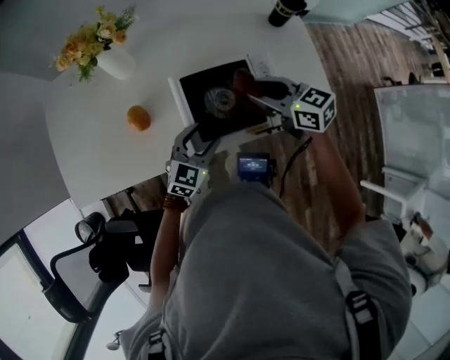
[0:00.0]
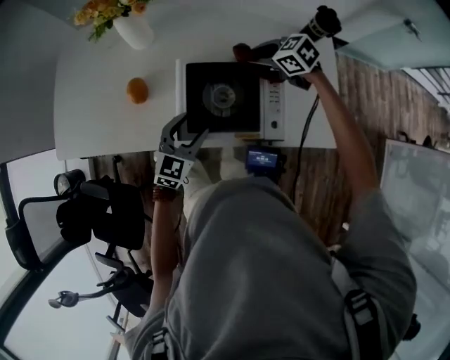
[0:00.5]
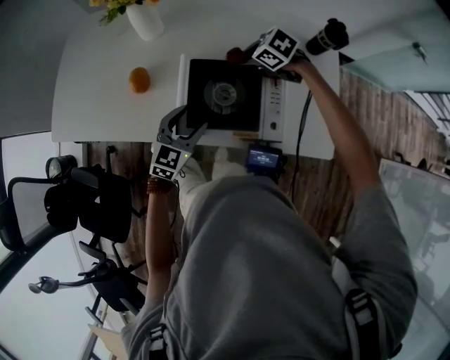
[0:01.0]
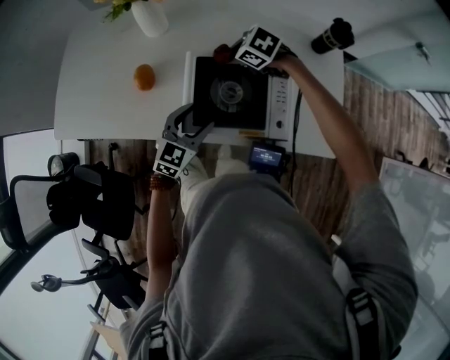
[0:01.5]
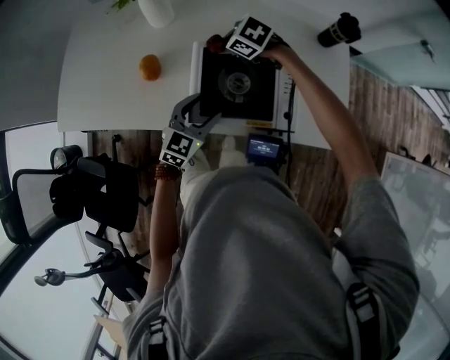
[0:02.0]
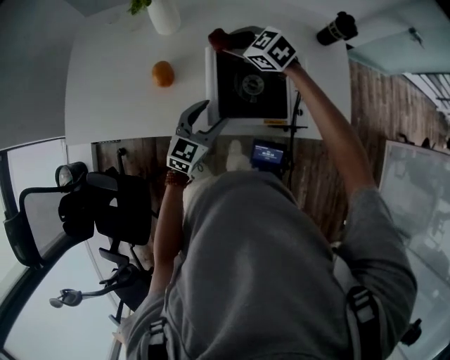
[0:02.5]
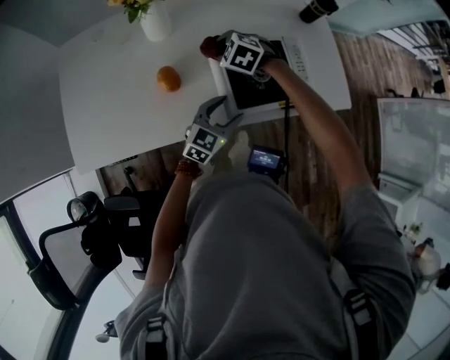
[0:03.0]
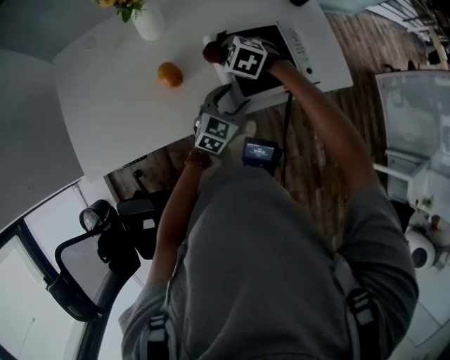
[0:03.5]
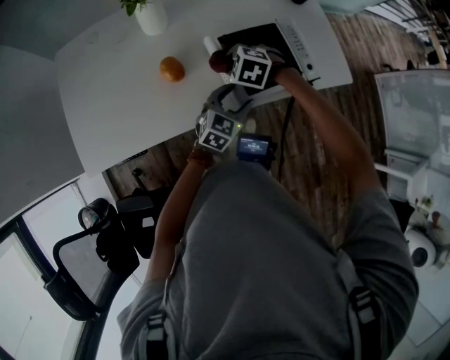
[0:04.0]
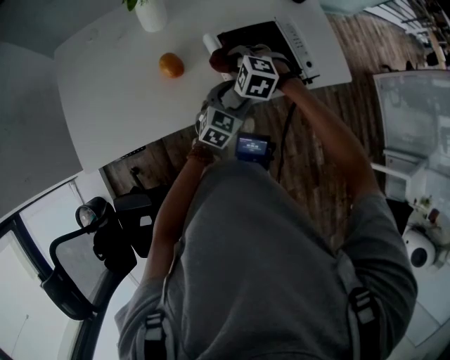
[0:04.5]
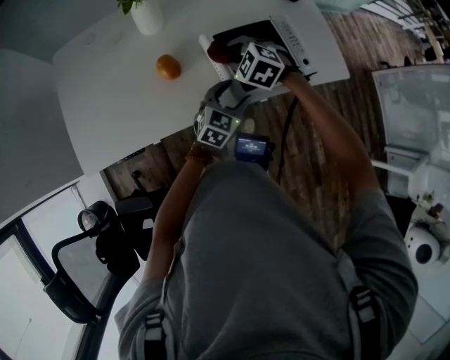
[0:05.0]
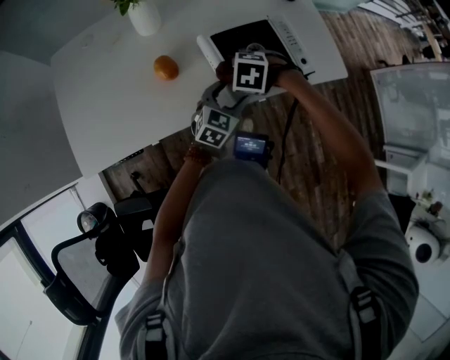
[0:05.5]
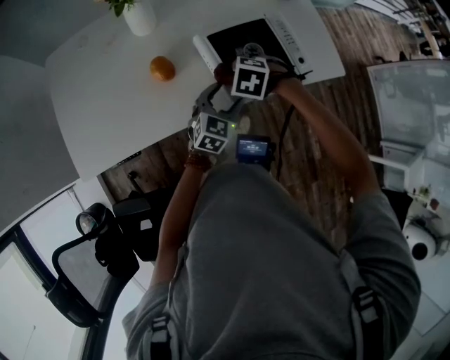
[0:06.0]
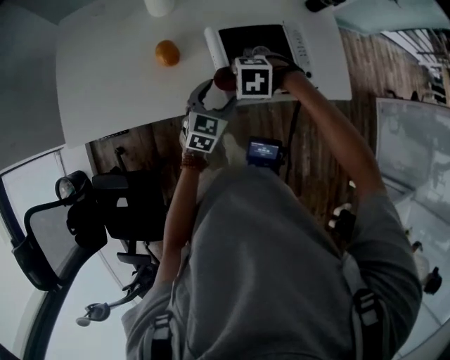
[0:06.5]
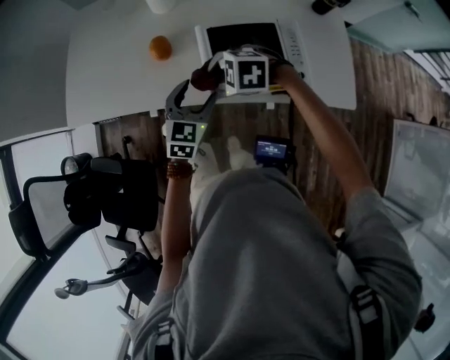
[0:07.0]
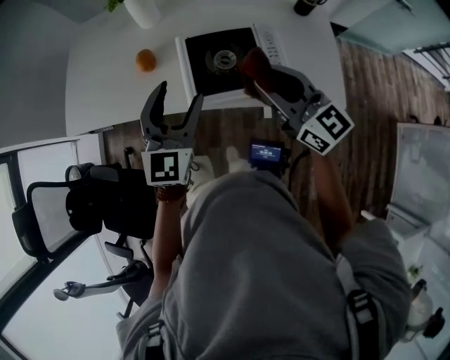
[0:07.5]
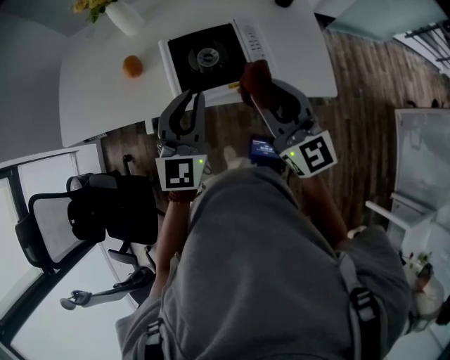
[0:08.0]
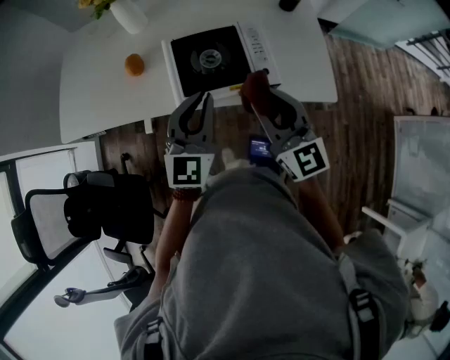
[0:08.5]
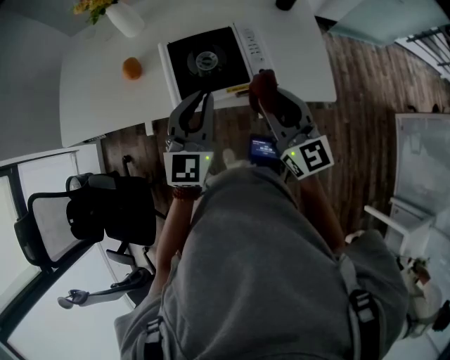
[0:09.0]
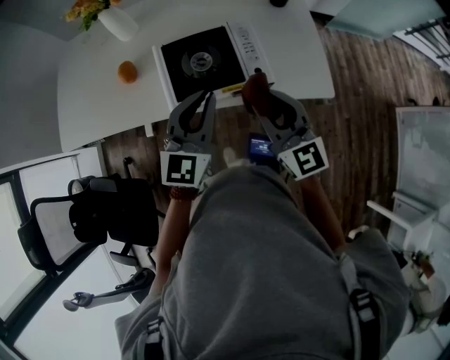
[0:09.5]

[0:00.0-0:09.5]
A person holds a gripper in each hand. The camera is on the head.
0:00.0 to 0:02.0: The right gripper moves about 20 cm, and tips its fingers downward by some 30 degrees.
0:02.0 to 0:04.0: The right gripper ends up approximately 15 cm from where it was, and rotates approximately 20 degrees; the left gripper shifts by about 5 cm, and changes its angle by some 20 degrees.
0:04.0 to 0:05.5: The right gripper changes place by about 5 cm.
0:05.5 to 0:07.5: Both grippers travel together upward, some 20 cm. The left gripper changes its angle by approximately 40 degrees. Meanwhile the right gripper points its fingers about 80 degrees further upward.
0:07.5 to 0:09.5: The left gripper goes approximately 10 cm to the right, and closes its fingers, while the right gripper moves backward and to the right, roughly 10 cm, and turns by approximately 20 degrees.

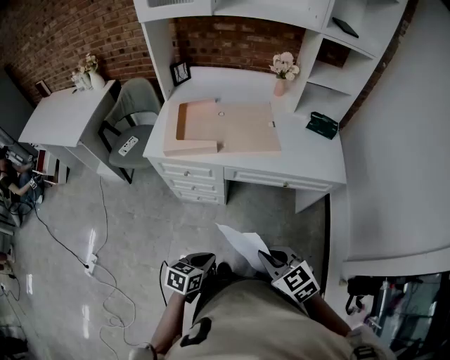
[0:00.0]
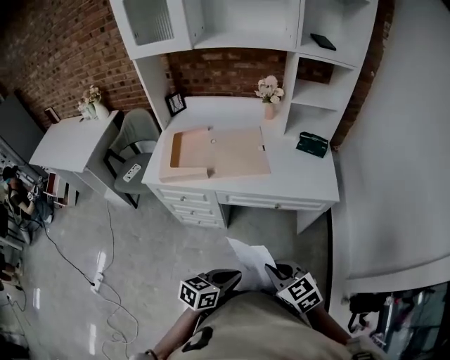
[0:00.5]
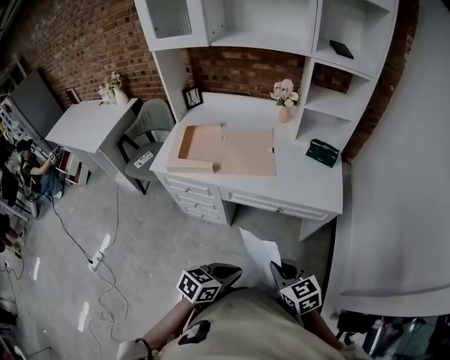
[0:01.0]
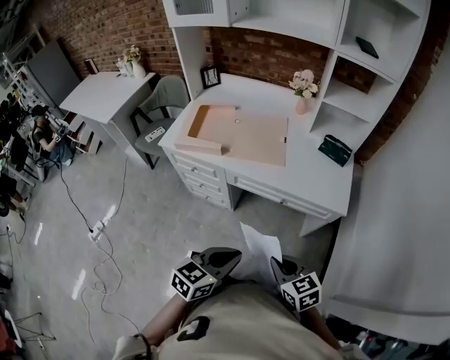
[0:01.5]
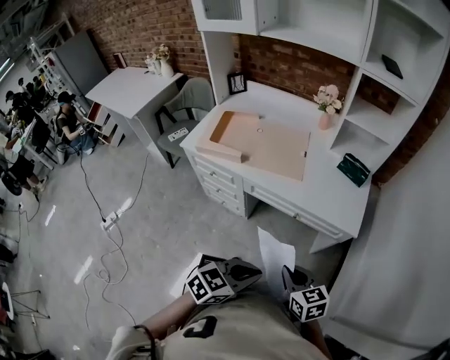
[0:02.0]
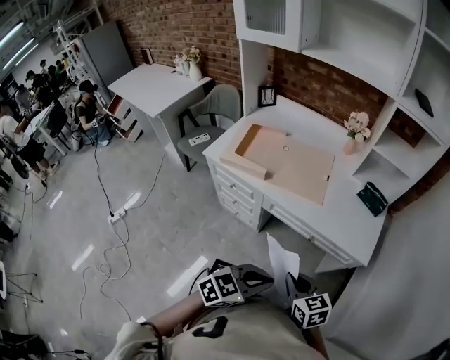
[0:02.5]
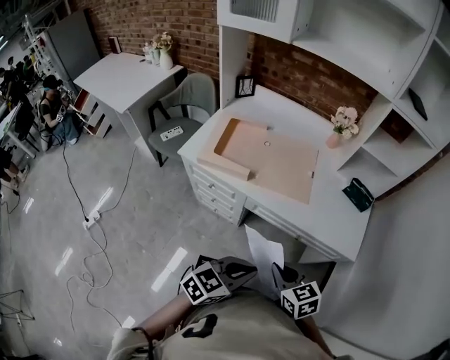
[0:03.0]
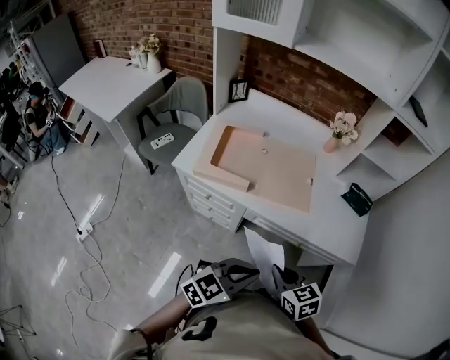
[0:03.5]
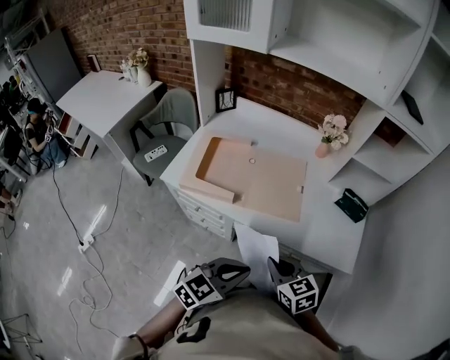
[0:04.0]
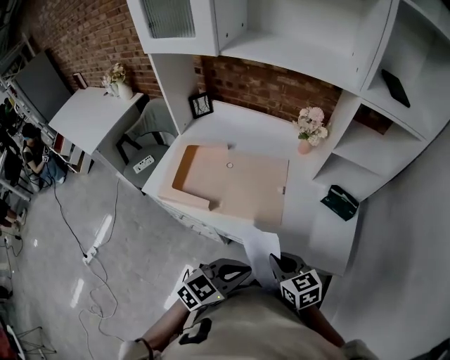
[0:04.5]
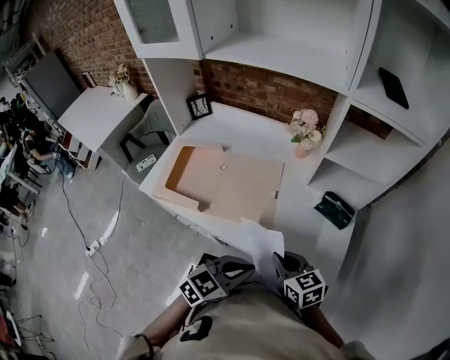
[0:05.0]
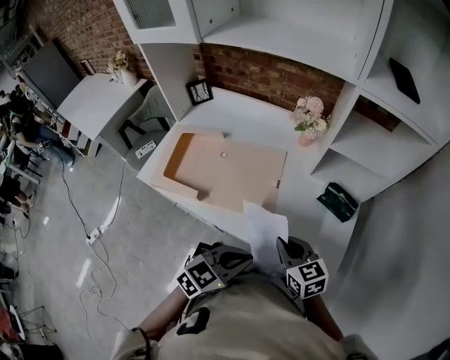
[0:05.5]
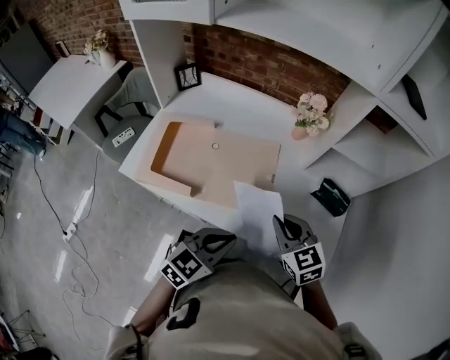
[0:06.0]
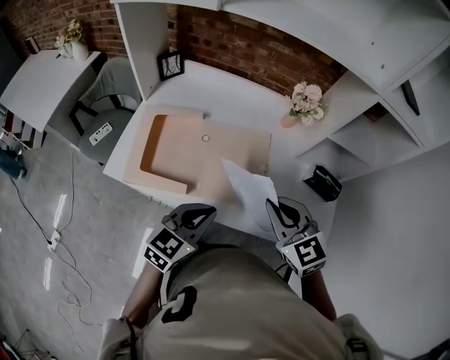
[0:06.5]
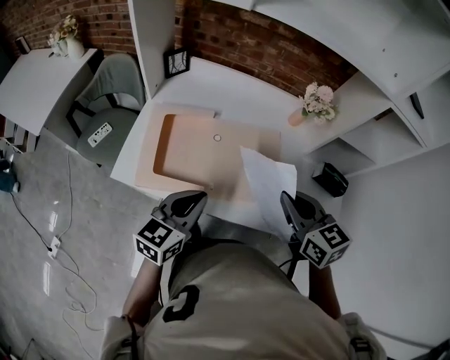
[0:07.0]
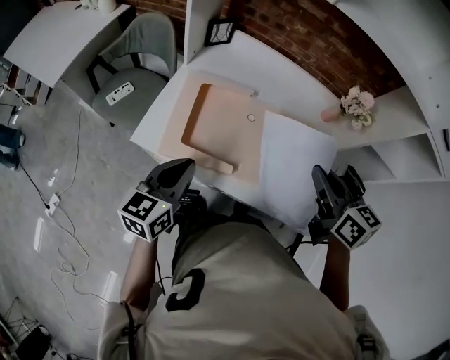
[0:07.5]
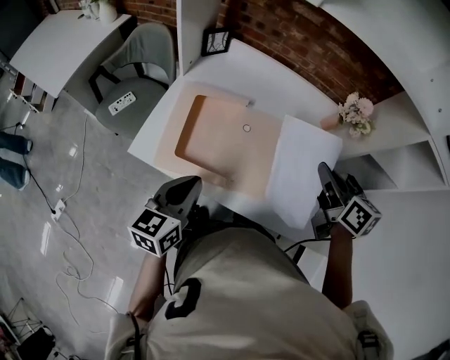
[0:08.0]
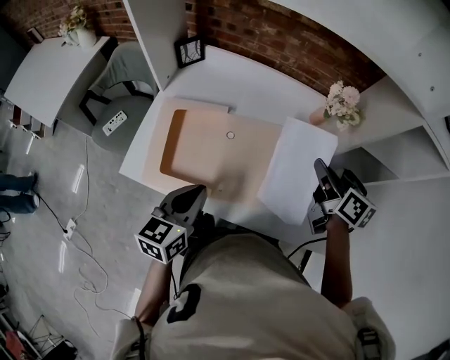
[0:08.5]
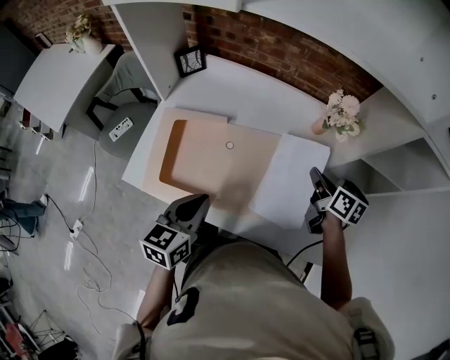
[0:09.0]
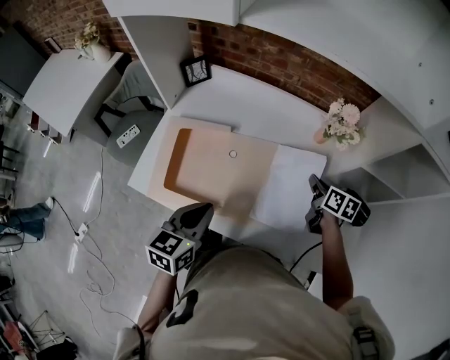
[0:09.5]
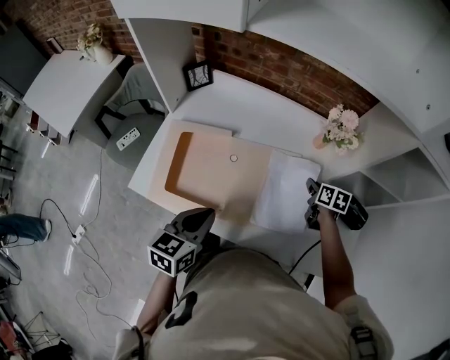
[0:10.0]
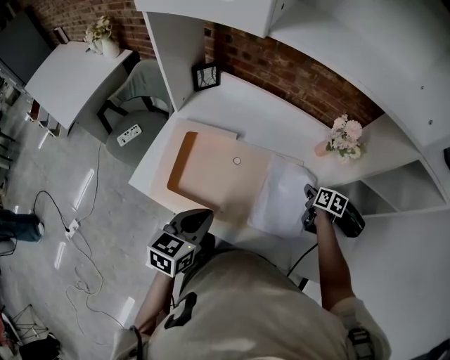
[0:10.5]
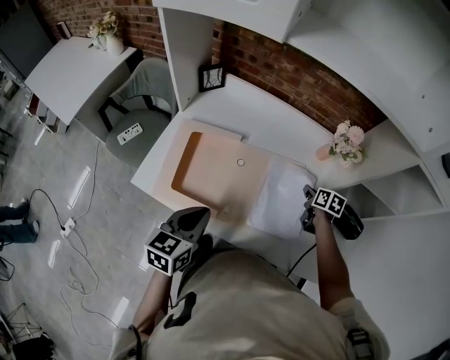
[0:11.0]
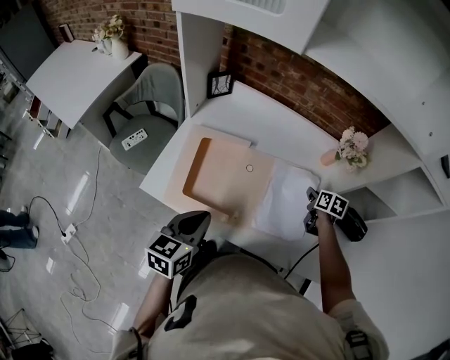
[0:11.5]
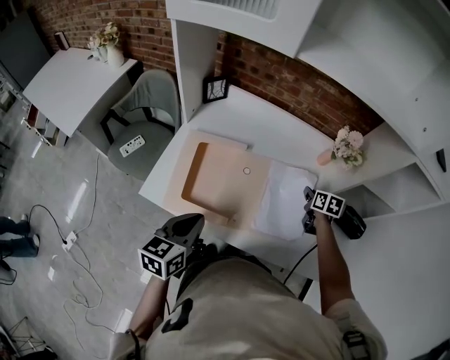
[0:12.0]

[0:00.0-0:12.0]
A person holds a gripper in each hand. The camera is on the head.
0:00.0 to 0:02.0: The right gripper shifts about 20 cm to the right. Meanwhile the left gripper moves to the right and upward, approximately 30 cm, and swivels approximately 20 degrees.
0:02.0 to 0:04.0: Both grippers travel together forward and to the left, some 20 cm.
0:04.0 to 0:06.0: The right gripper heads forward and to the right, covering roughly 20 cm; the left gripper travels forward by about 15 cm.
0:06.0 to 0:08.0: The left gripper travels to the left by roughly 25 cm, and swivels some 40 degrees, while the right gripper travels forward, to the left and upward by about 15 cm, and rotates roughly 40 degrees.
0:08.0 to 0:10.0: The left gripper travels to the right by roughly 10 cm. Meanwhile the right gripper moves downward, to the right and forward, approximately 25 cm, and turns by about 20 degrees.
0:10.0 to 0:12.0: The left gripper shifts roughly 10 cm to the left.

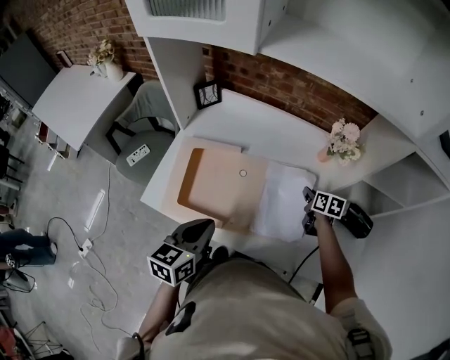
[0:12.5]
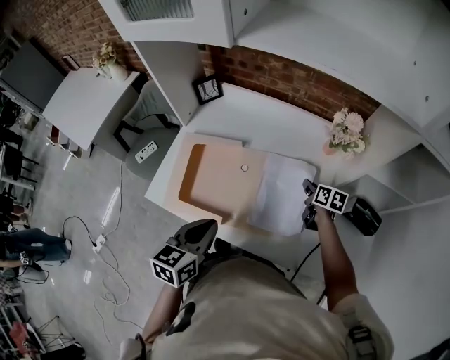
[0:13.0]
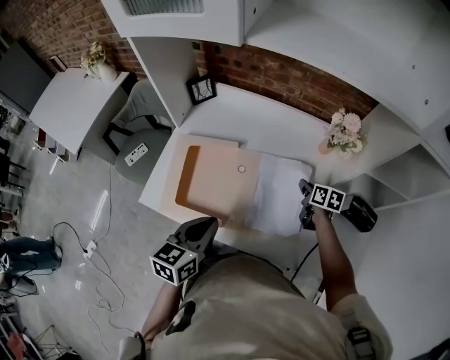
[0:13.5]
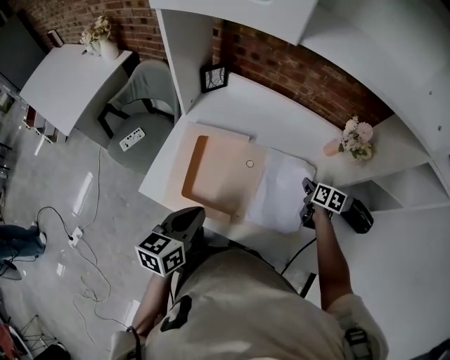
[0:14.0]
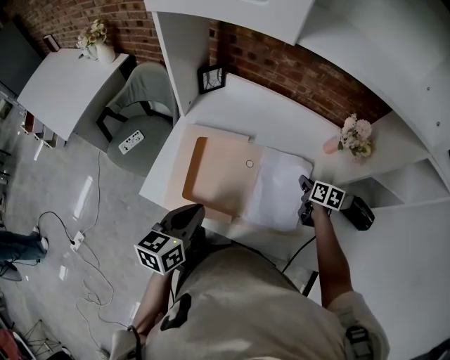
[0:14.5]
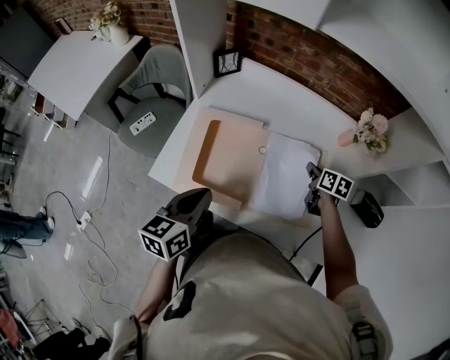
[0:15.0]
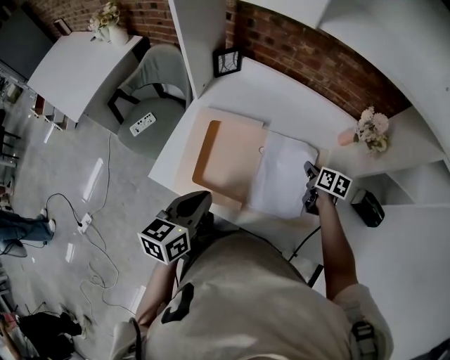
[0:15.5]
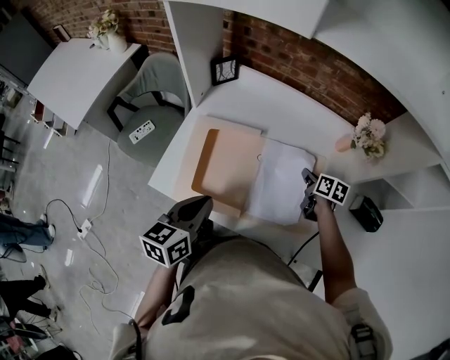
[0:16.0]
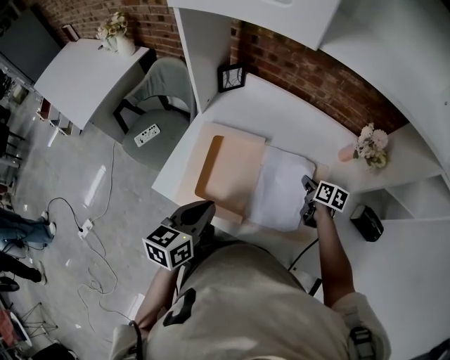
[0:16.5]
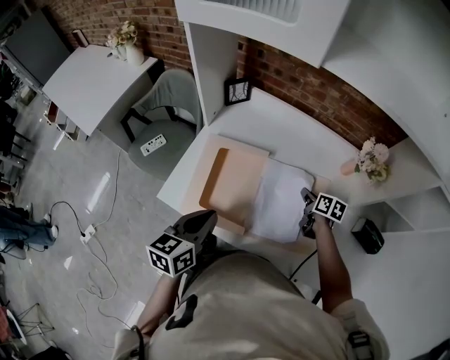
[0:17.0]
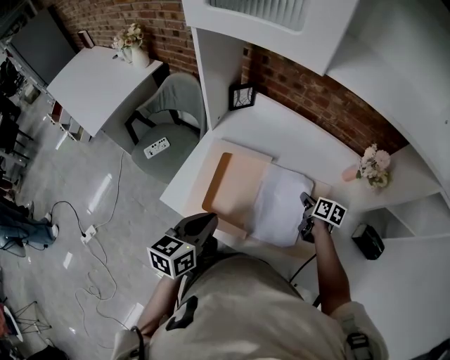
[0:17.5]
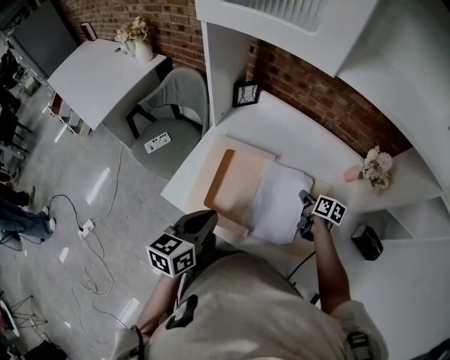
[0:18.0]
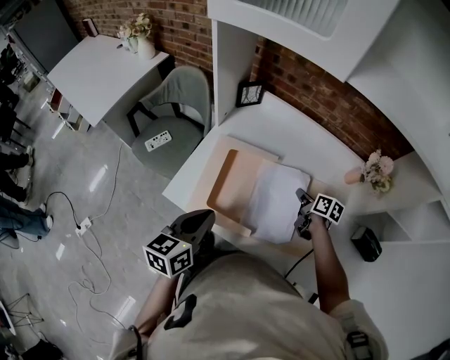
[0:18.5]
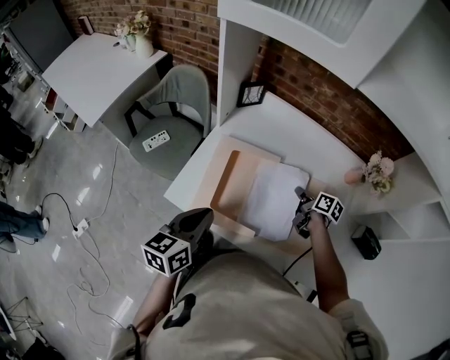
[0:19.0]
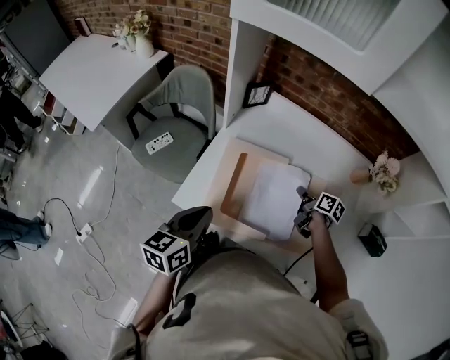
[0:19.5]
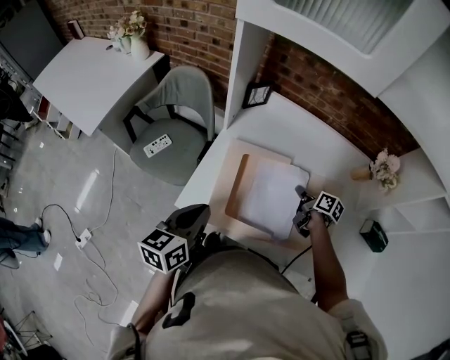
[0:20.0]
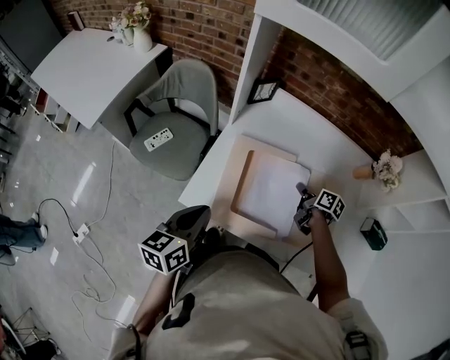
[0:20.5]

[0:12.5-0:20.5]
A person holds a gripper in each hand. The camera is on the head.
0:12.5 to 0:14.5: The right gripper ends up approximately 5 cm from where it was. Meanwhile the left gripper travels to the left by about 5 cm.
0:14.5 to 0:16.5: The grippers make only small movements.
0:16.5 to 0:18.5: The right gripper shifts roughly 5 cm to the left.
0:18.5 to 0:20.5: The grippers both shift to the left by approximately 10 cm.
